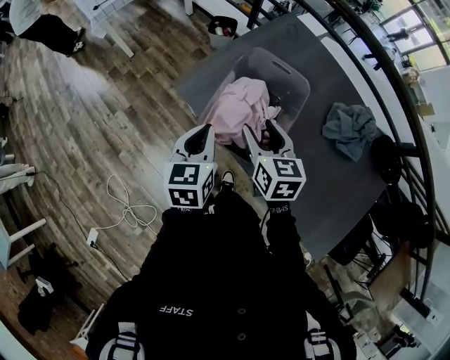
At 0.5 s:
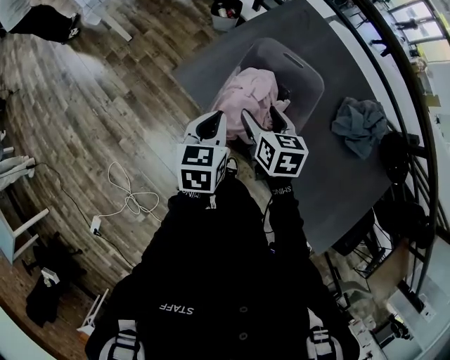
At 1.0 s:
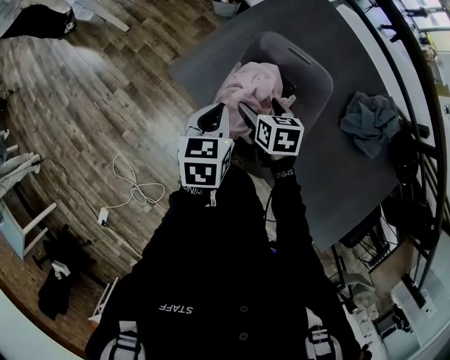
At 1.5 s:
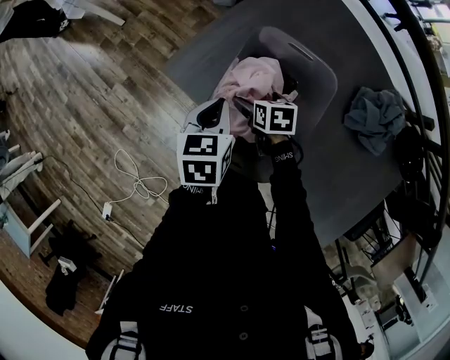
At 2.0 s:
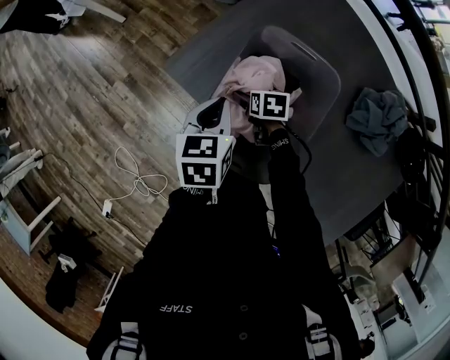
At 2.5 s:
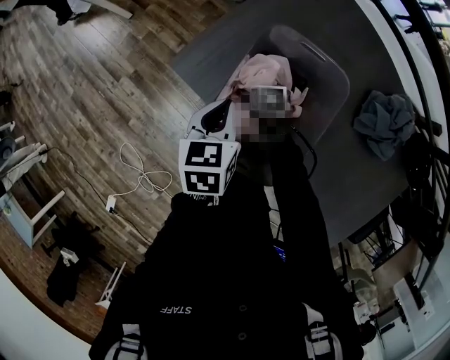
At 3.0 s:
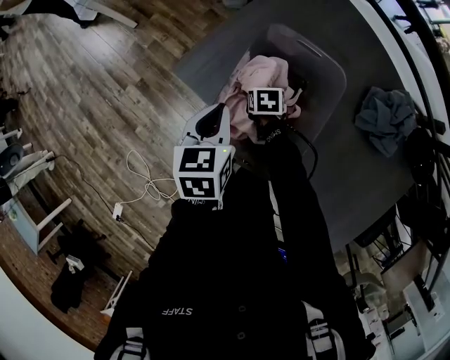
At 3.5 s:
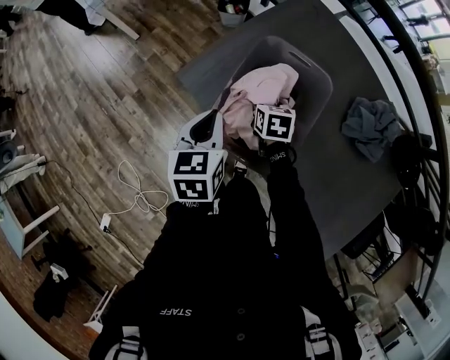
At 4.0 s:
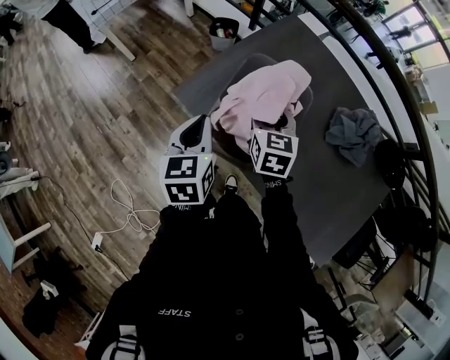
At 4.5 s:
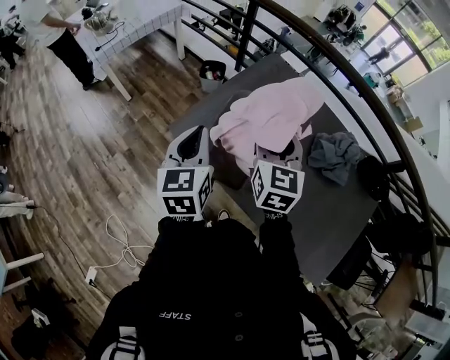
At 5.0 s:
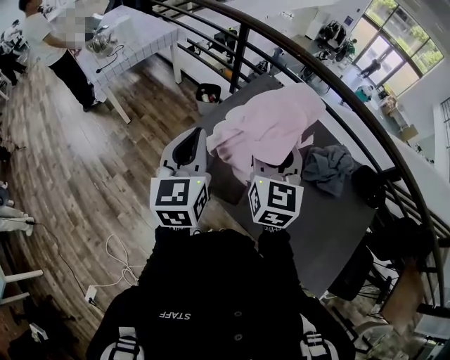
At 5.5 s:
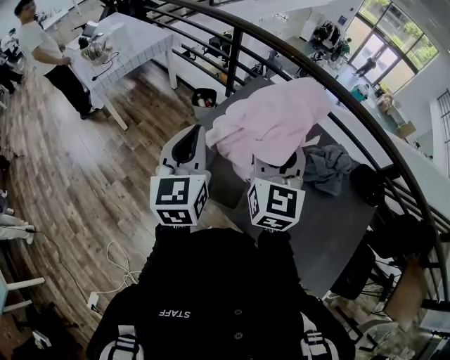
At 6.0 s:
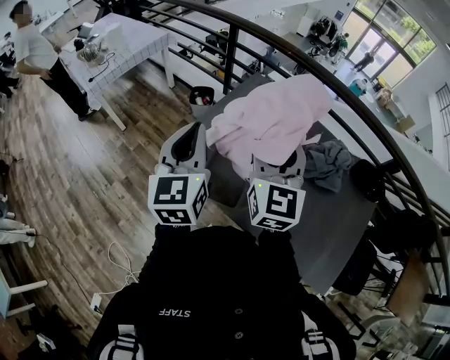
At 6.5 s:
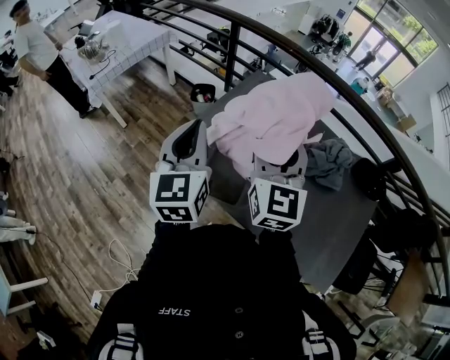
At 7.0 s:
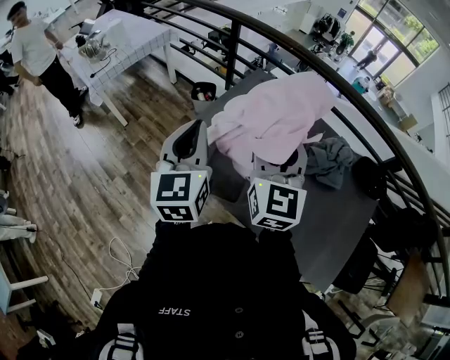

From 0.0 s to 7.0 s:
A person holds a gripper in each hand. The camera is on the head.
From 0.0 s to 2.0 s: The right gripper shifts approximately 30 cm downward and forward, tilts its fingers about 30 degrees downward, and opens its fingers. The left gripper shifts about 15 cm forward and downward.
From 2.0 s to 3.5 s: The grippers both shift upward by approximately 10 cm. The right gripper closes.
From 3.5 s to 5.0 s: The left gripper shifts roughly 25 cm upward, and rotates some 30 degrees; the right gripper travels upward by about 40 cm, and points its fingers some 50 degrees further upward.
From 5.0 s to 7.0 s: The grippers move only a little.

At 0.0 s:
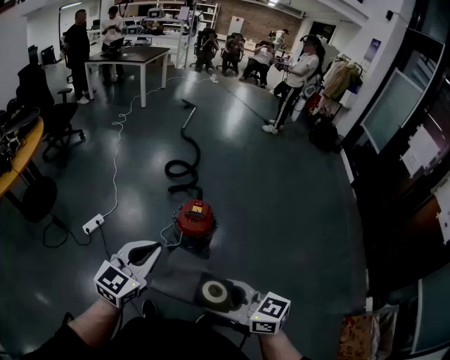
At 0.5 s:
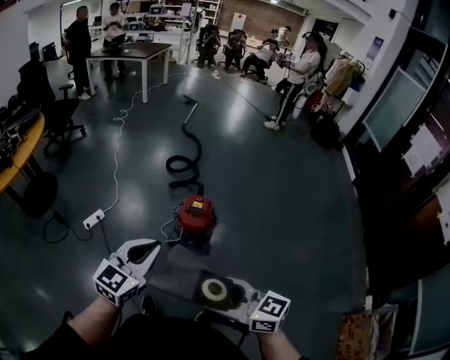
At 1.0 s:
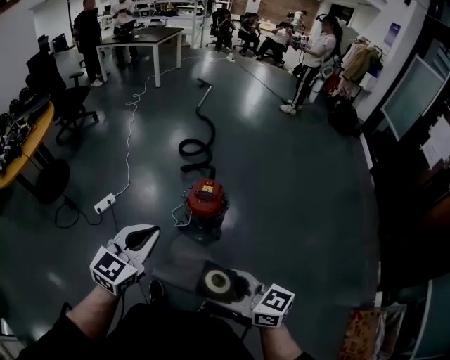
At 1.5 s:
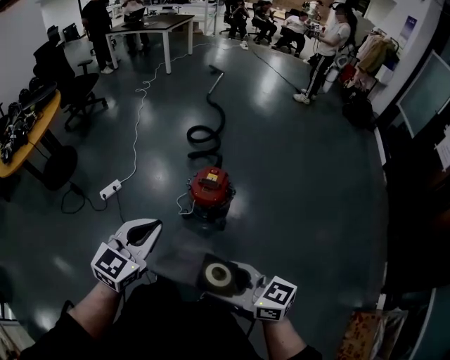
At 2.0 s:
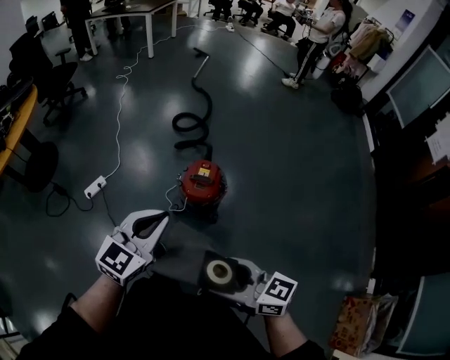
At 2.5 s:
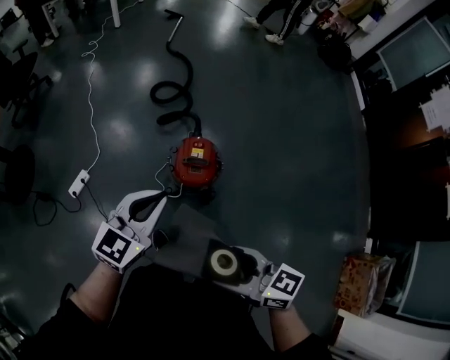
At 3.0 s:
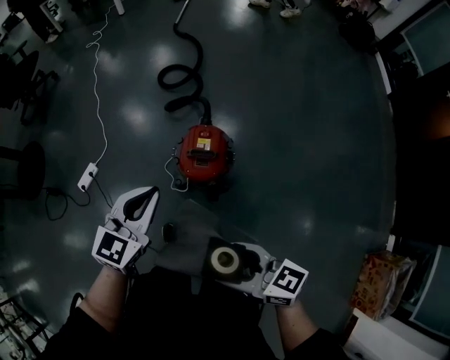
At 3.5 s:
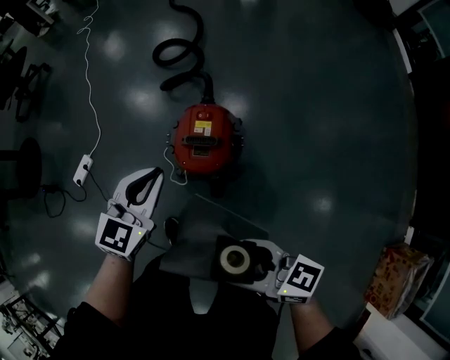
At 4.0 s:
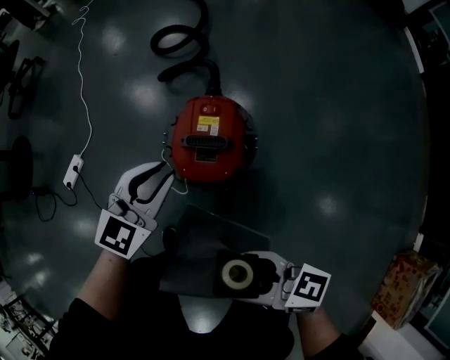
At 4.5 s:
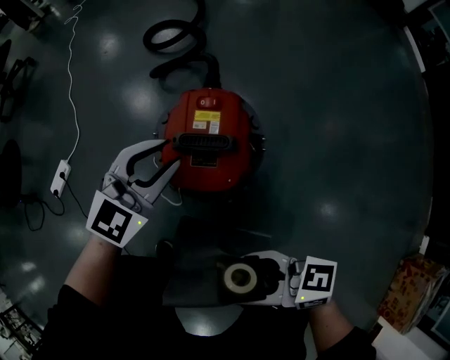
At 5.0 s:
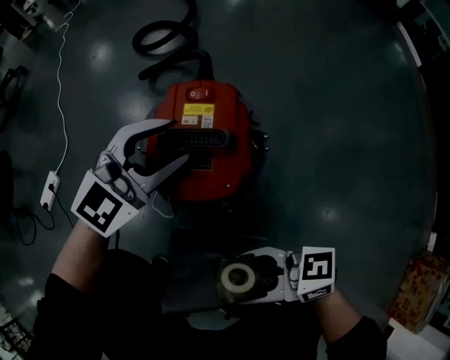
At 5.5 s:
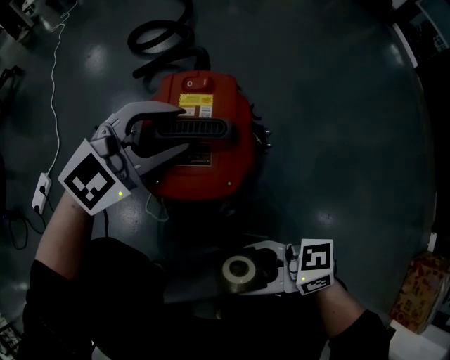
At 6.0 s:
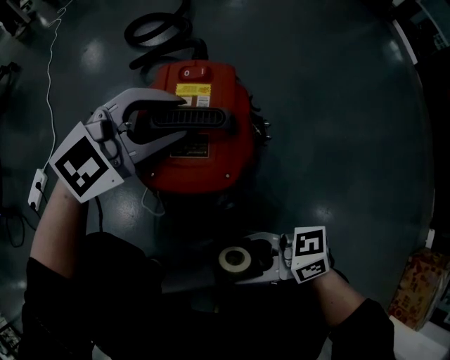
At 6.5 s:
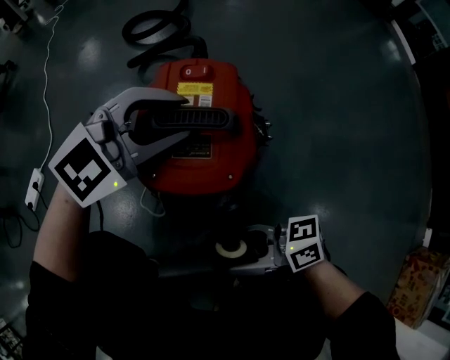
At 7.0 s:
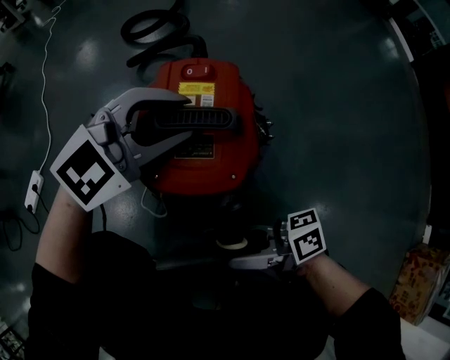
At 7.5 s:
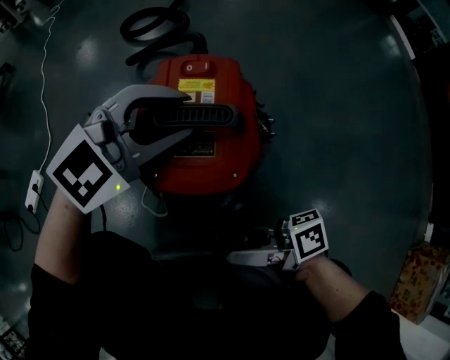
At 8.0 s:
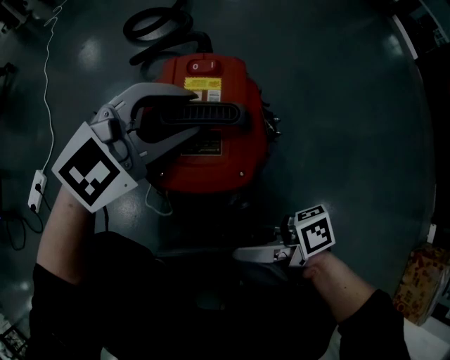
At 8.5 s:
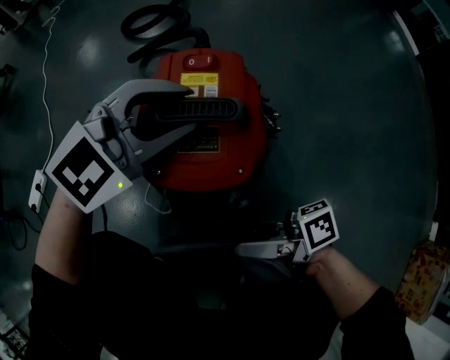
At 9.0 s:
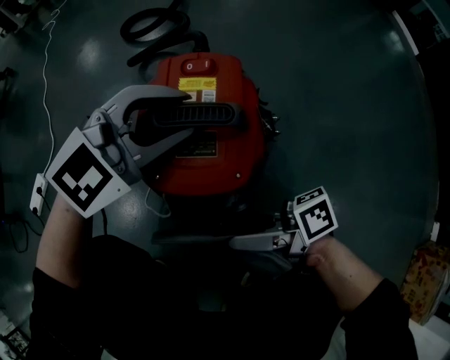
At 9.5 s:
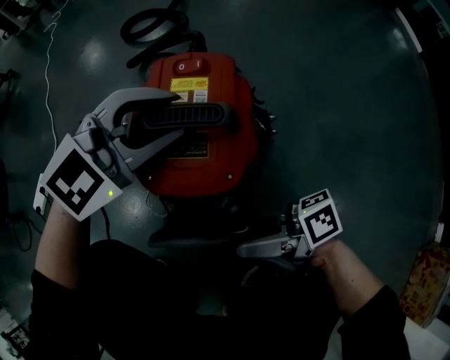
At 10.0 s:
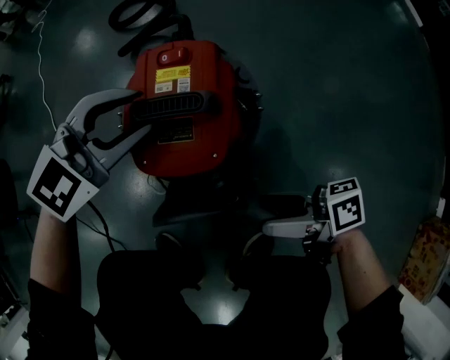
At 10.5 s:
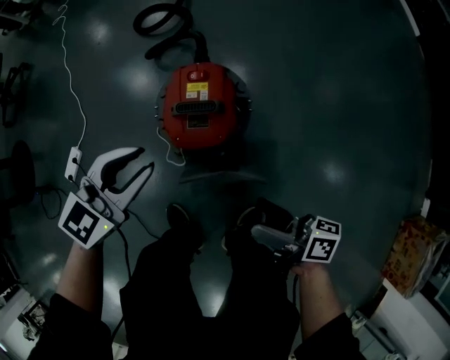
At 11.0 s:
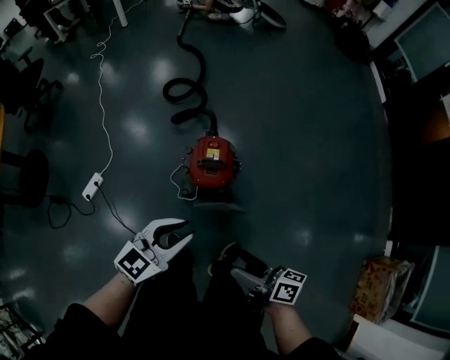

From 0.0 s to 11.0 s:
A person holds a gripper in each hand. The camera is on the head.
From 0.0 s to 2.0 s: The left gripper travels forward and to the right by about 10 cm, while the right gripper heads forward and downward, covering roughly 10 cm.
From 2.0 s to 3.5 s: Both grippers move downward and forward, approximately 30 cm.
From 3.5 s to 5.5 s: The grippers both shift downward by approximately 30 cm. The left gripper turns by approximately 50 degrees, and opens.
From 5.5 s to 7.5 s: The right gripper moves about 5 cm, and rotates roughly 30 degrees.
From 7.5 s to 9.0 s: There are only small adjustments of the grippers.
From 9.0 s to 11.0 s: Both grippers travel together upward, roughly 40 cm. The left gripper turns by some 40 degrees. Meanwhile the right gripper changes its angle by about 40 degrees.

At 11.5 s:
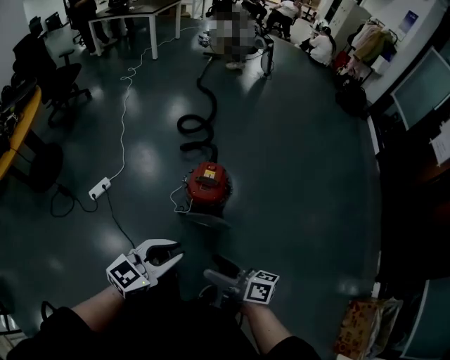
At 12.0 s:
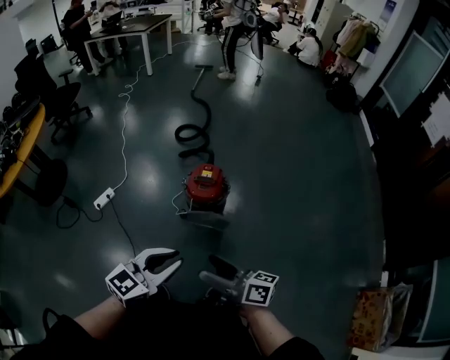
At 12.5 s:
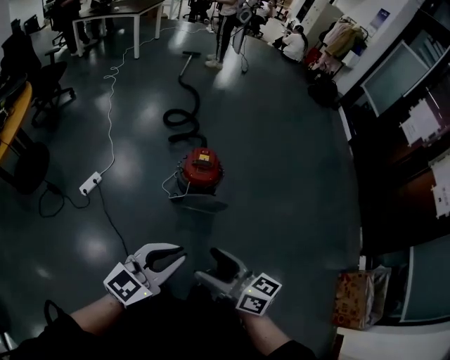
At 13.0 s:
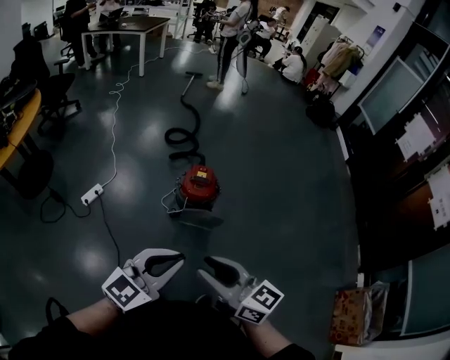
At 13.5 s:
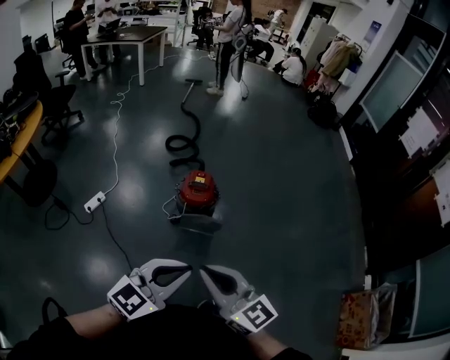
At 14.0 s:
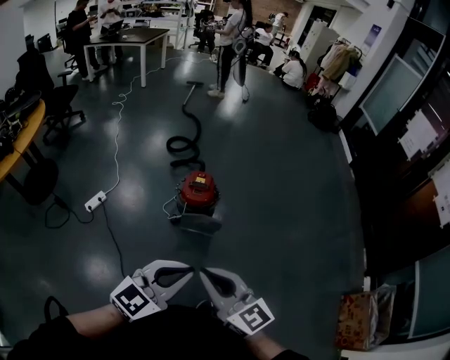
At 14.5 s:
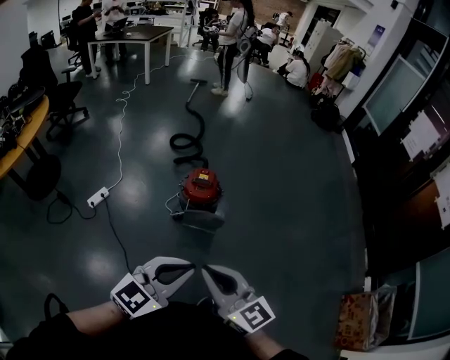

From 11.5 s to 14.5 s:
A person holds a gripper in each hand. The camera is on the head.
From 11.5 s to 13.0 s: The right gripper travels upward, backward and to the left by some 20 cm, rotates about 40 degrees, and closes up; the left gripper heads backward and upward, covering approximately 20 cm.
From 13.0 s to 14.5 s: The left gripper heads to the right, covering about 5 cm.

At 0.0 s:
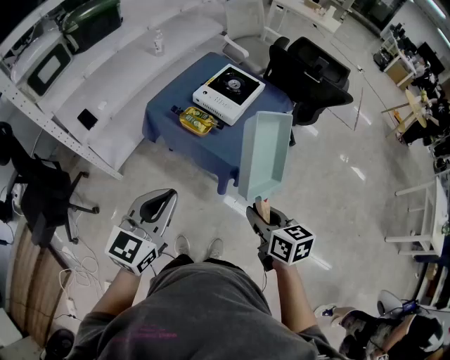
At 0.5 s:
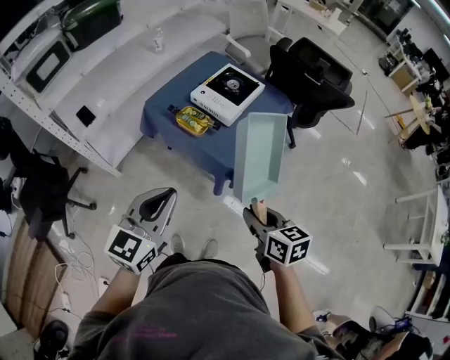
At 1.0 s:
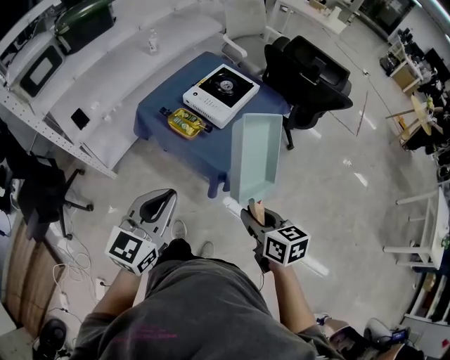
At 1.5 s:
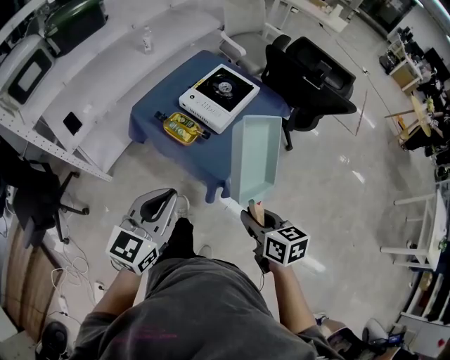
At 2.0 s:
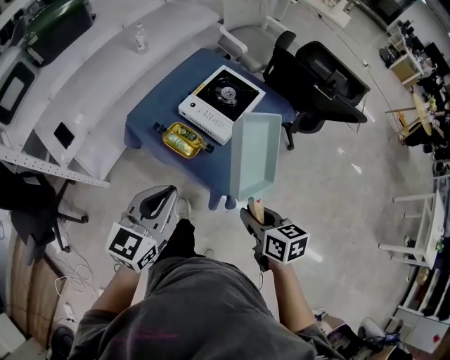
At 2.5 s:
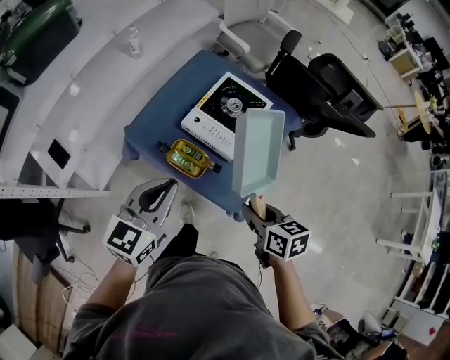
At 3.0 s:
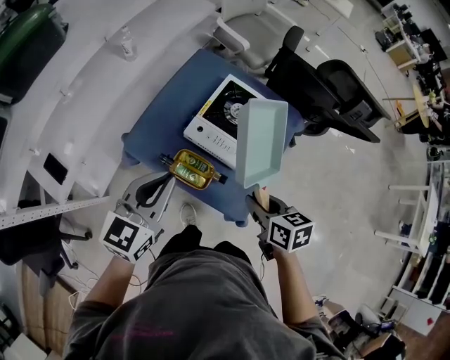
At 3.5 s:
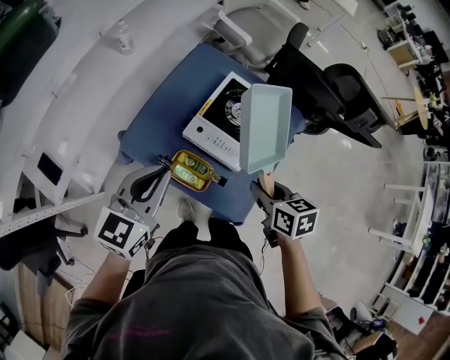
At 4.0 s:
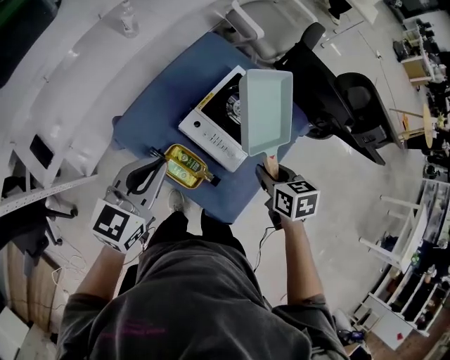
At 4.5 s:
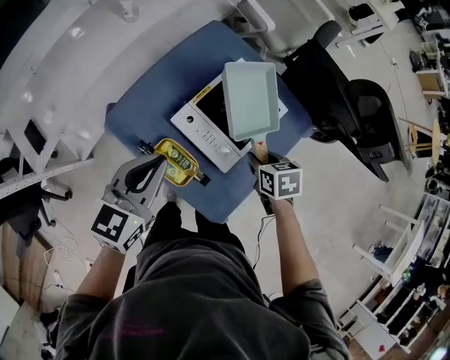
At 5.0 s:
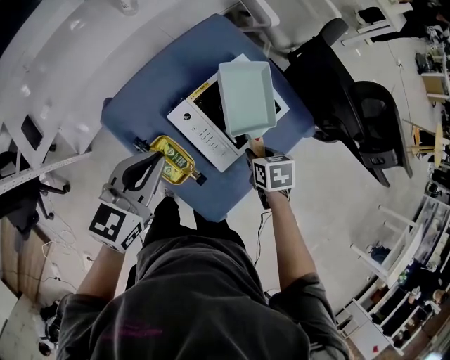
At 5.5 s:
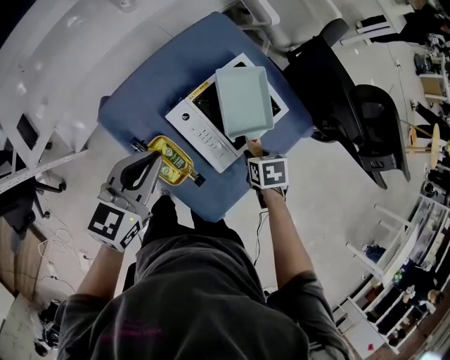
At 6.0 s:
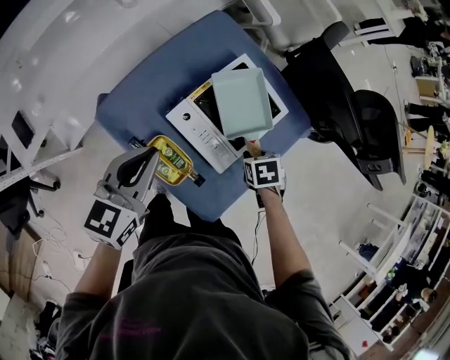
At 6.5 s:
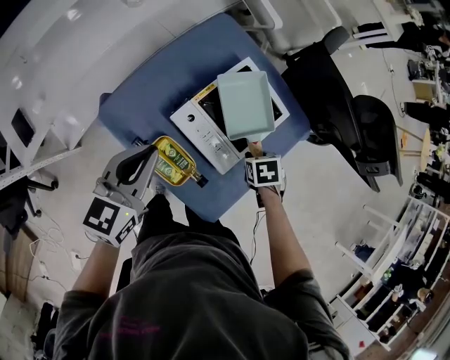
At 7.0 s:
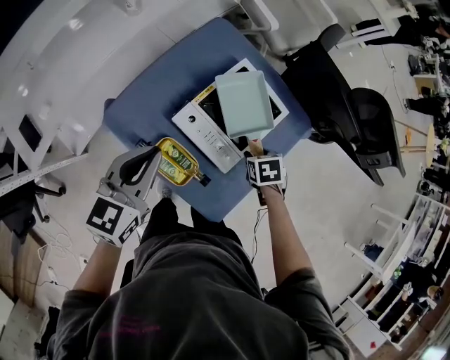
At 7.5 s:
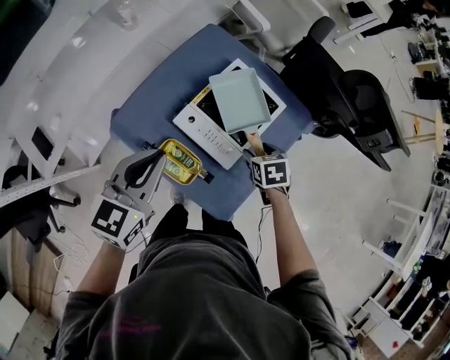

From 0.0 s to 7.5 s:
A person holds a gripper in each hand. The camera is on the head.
From 0.0 s to 2.0 s: The grippers both shift forward by approximately 20 cm.
From 2.0 s to 4.0 s: The grippers both shift forward by some 30 cm.
From 4.0 s to 5.5 s: The left gripper ends up roughly 5 cm from where it was. The right gripper is displaced downward by approximately 15 cm, and swivels about 20 degrees.
From 5.5 s to 7.5 s: The left gripper shifts by some 5 cm; the right gripper opens its fingers.
